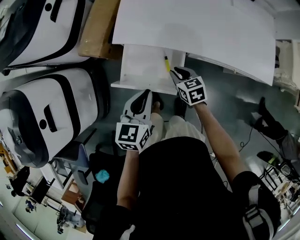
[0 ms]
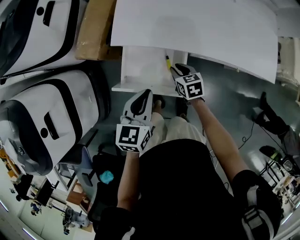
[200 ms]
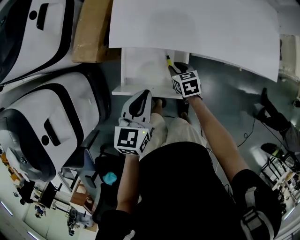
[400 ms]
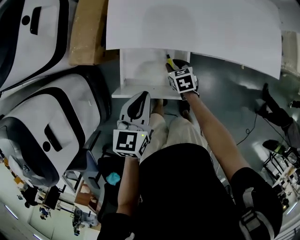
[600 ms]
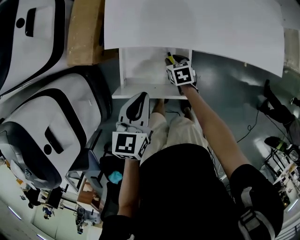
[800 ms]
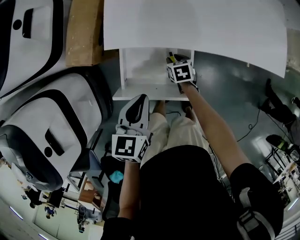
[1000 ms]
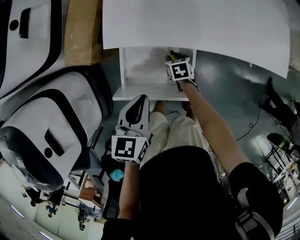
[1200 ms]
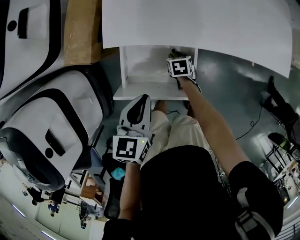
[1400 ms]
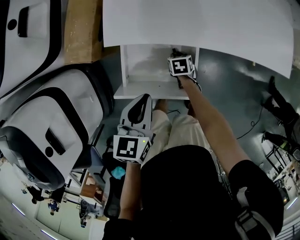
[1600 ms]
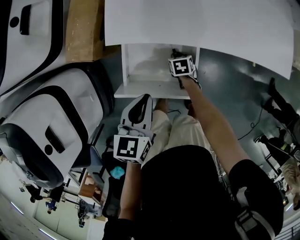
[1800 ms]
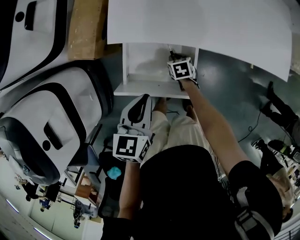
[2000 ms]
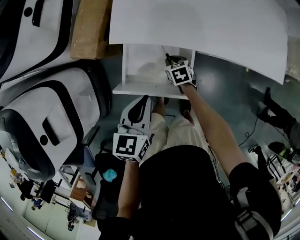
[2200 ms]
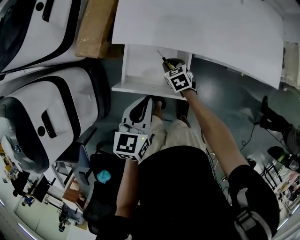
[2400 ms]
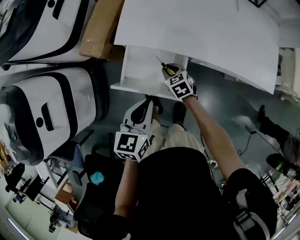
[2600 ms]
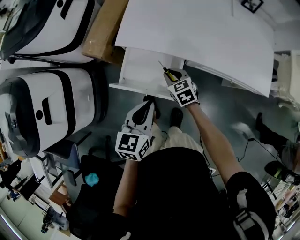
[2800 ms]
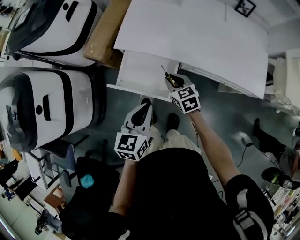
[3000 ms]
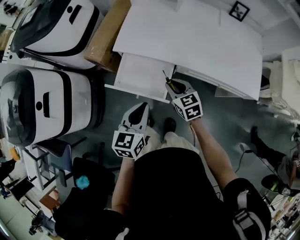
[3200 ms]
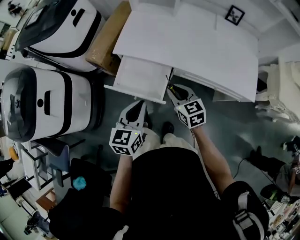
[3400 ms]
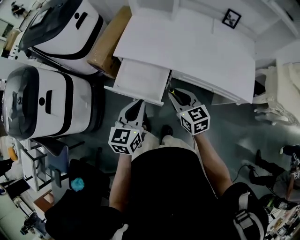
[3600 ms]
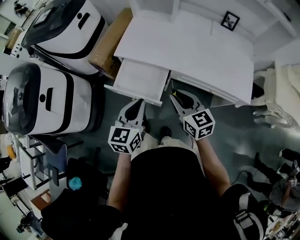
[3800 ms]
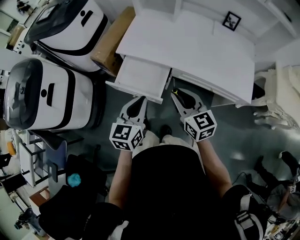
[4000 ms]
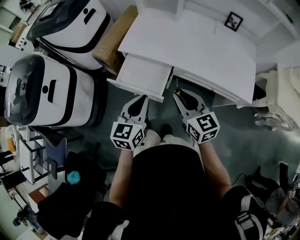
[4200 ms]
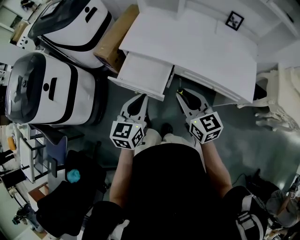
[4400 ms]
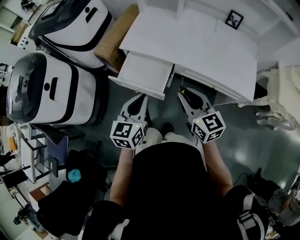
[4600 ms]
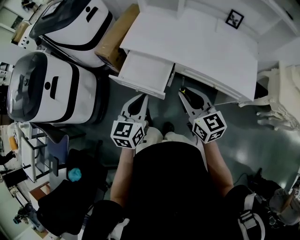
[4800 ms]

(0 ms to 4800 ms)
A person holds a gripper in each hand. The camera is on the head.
0 ms - 1600 ms: The right gripper heads downward, covering roughly 25 cm, and turns by approximately 30 degrees. Meanwhile the left gripper moves downward, forward and to the left, some 10 cm.
1600 ms - 3200 ms: The left gripper heads backward, upward and to the right, covering roughly 25 cm. Meanwhile the right gripper travels upward by some 35 cm, and tilts its fingers roughly 40 degrees upward.
3200 ms - 4800 ms: The right gripper goes roughly 25 cm upward and backward, and rotates some 20 degrees. The left gripper shifts about 10 cm backward and upward.

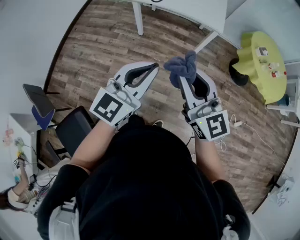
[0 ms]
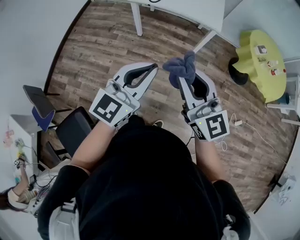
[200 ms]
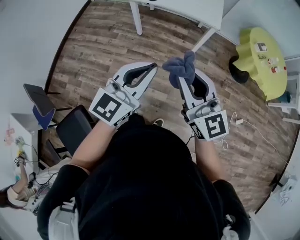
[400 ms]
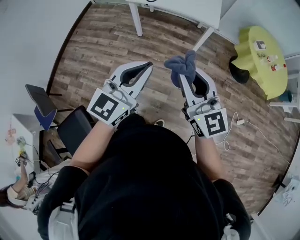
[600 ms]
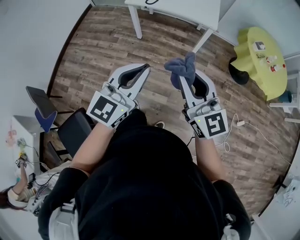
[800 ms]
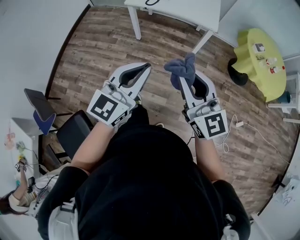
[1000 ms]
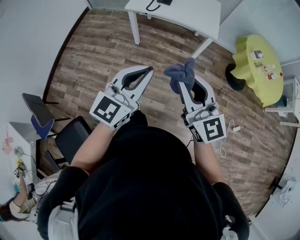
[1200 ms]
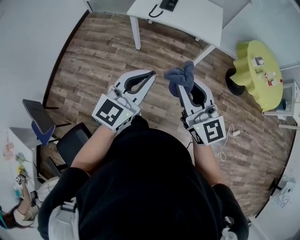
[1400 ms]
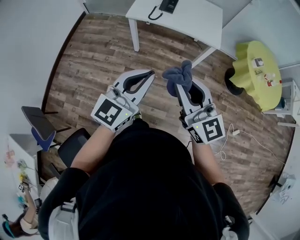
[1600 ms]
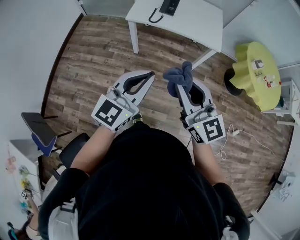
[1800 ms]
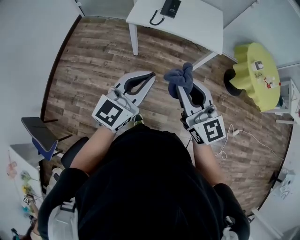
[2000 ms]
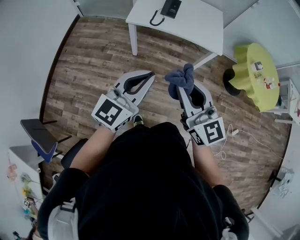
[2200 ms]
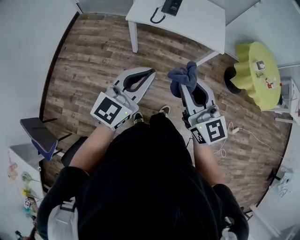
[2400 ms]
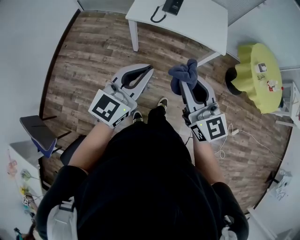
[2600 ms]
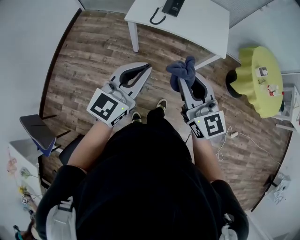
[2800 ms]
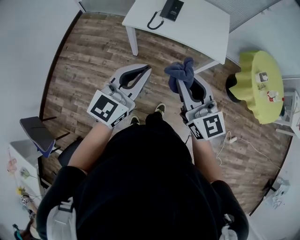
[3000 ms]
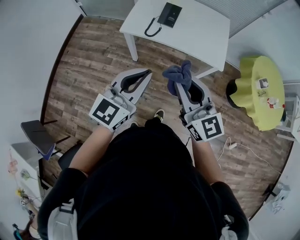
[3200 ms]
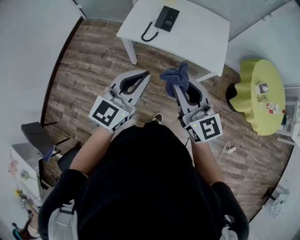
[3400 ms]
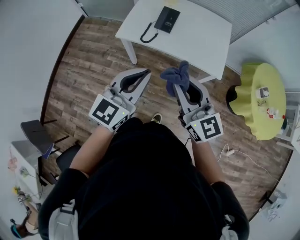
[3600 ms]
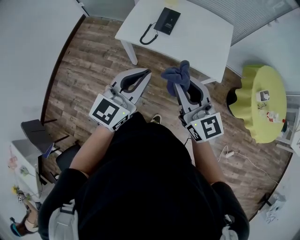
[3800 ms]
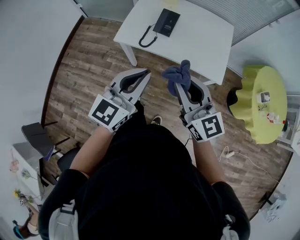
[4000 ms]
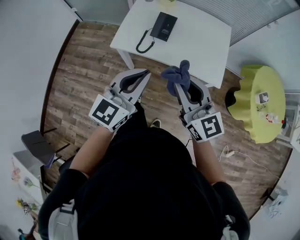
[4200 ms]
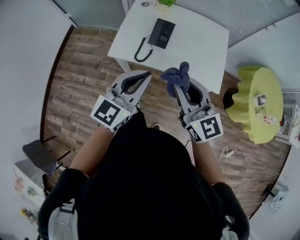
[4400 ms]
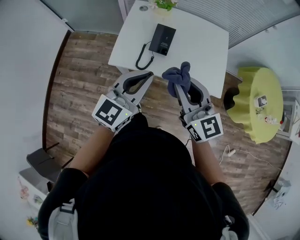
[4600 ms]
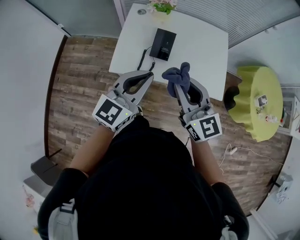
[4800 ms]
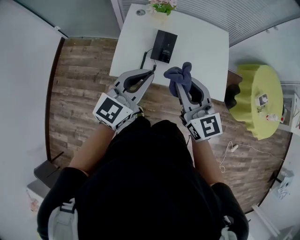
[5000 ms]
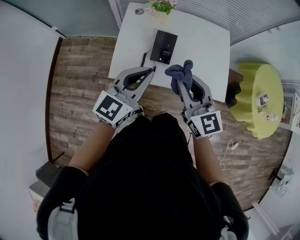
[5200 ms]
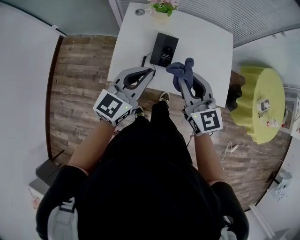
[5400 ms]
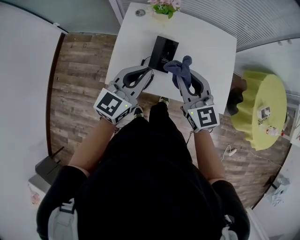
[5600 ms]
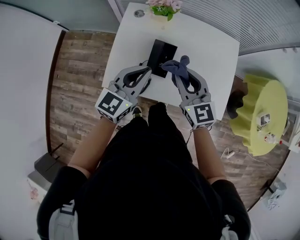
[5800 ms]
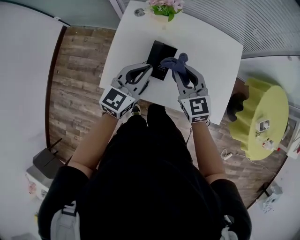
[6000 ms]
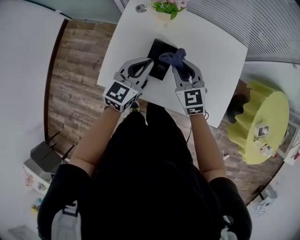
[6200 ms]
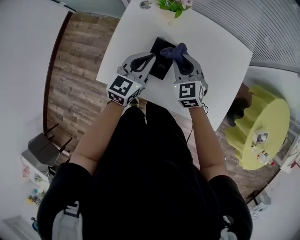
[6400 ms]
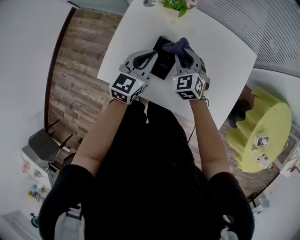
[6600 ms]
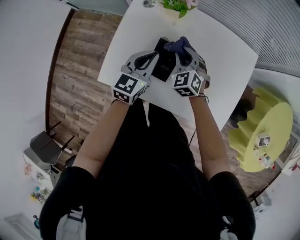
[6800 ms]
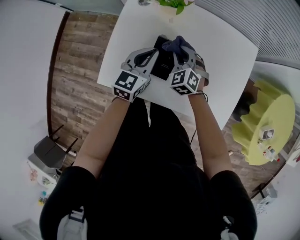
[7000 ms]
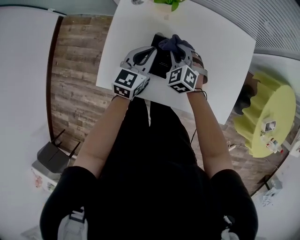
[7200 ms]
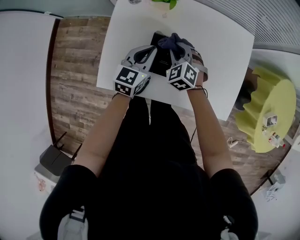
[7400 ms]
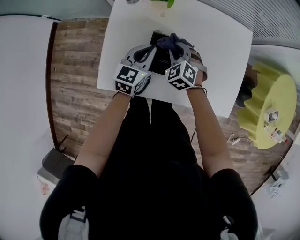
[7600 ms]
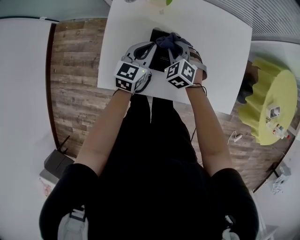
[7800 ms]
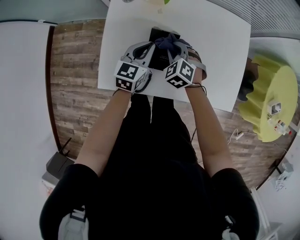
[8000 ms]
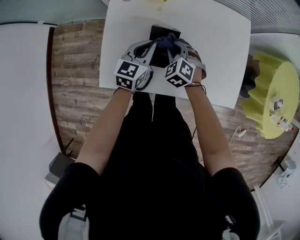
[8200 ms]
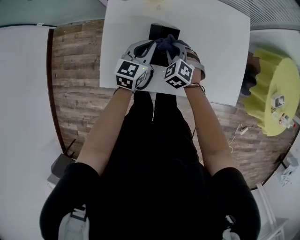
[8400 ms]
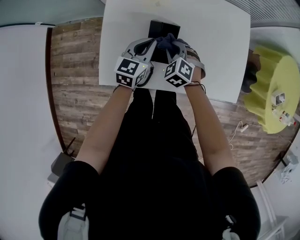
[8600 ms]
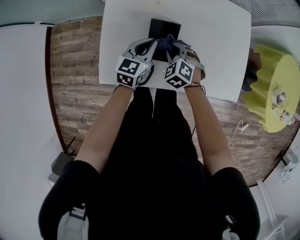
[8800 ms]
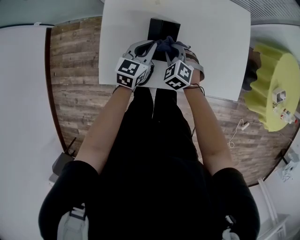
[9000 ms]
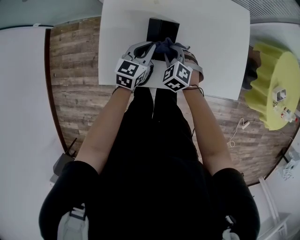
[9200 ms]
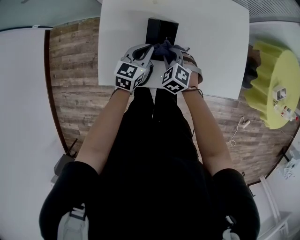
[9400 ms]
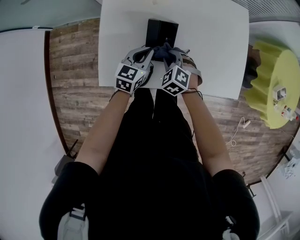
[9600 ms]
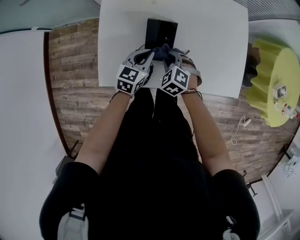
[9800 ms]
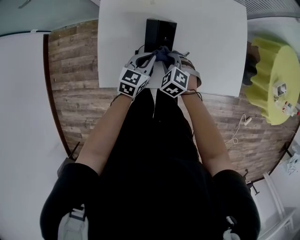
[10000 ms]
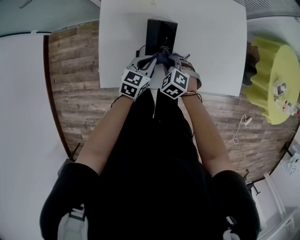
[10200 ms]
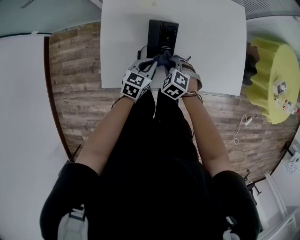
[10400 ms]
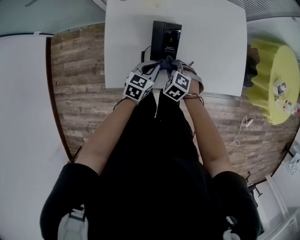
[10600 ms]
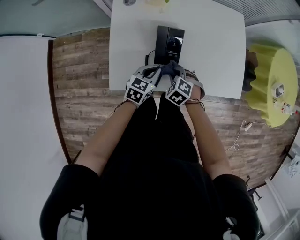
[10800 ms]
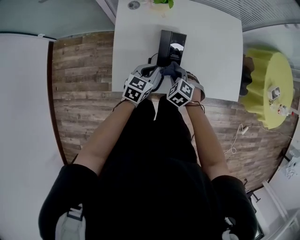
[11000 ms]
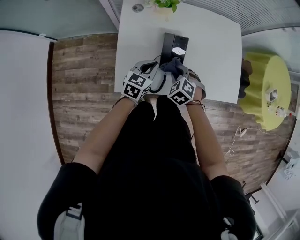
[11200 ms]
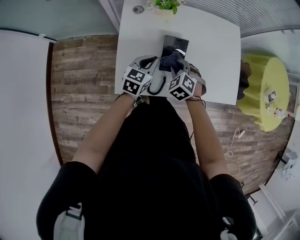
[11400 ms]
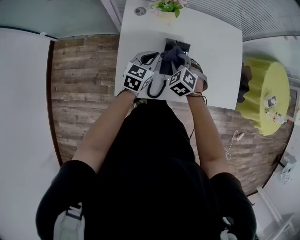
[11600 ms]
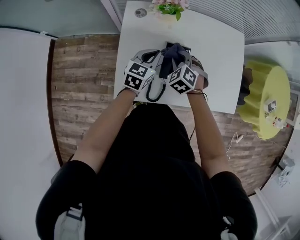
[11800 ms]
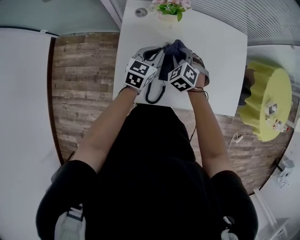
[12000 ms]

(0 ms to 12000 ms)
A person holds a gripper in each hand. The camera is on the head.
0 ms - 1600 ms: The left gripper moves forward and to the left, about 10 cm; the right gripper moves forward, roughly 10 cm.
1600 ms - 3000 ms: Both grippers move forward, approximately 20 cm.
3000 ms - 4400 ms: The grippers both shift forward by some 25 cm.
4400 ms - 6000 ms: The two grippers go some 35 cm forward and downward. The right gripper turns by some 20 degrees.
6000 ms - 7600 ms: Both grippers travel together downward and forward, about 15 cm. The right gripper swivels approximately 40 degrees.
7600 ms - 9000 ms: The right gripper shifts about 5 cm backward.
9000 ms - 10400 ms: The left gripper shifts about 10 cm backward and downward, while the right gripper heads backward, covering roughly 5 cm.
10400 ms - 12000 ms: The grippers both shift forward, upward and to the left by about 15 cm.

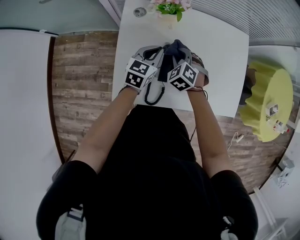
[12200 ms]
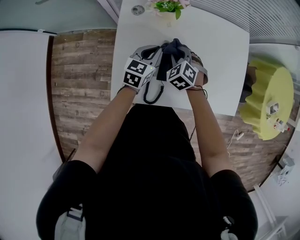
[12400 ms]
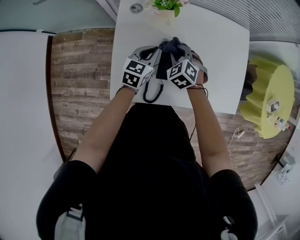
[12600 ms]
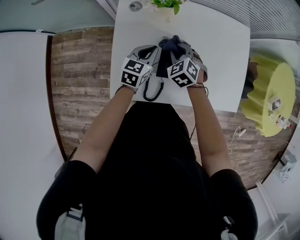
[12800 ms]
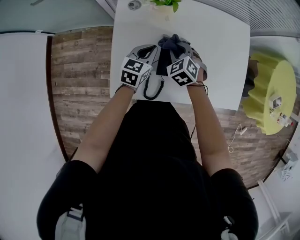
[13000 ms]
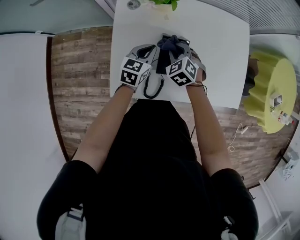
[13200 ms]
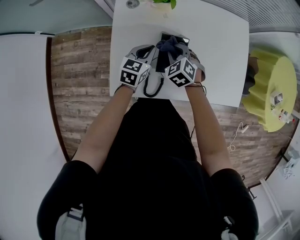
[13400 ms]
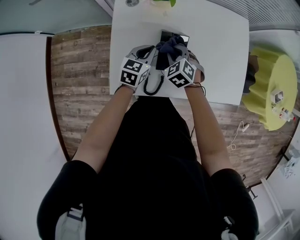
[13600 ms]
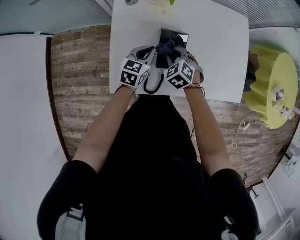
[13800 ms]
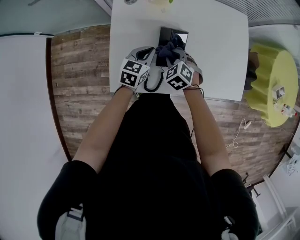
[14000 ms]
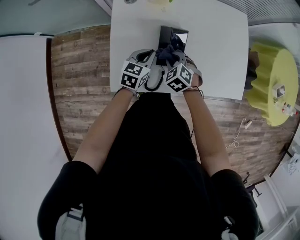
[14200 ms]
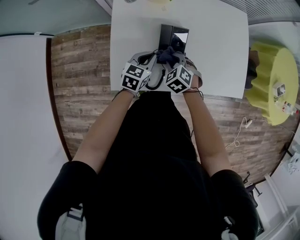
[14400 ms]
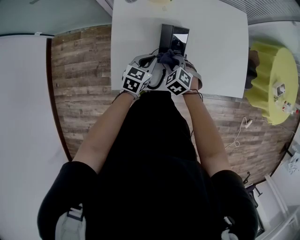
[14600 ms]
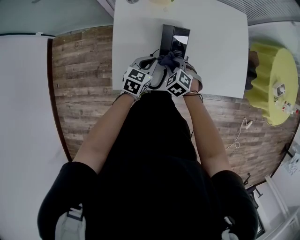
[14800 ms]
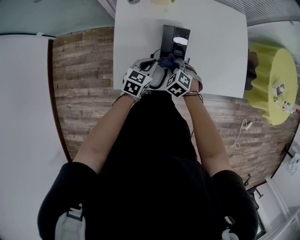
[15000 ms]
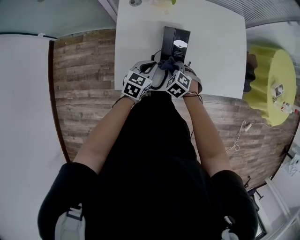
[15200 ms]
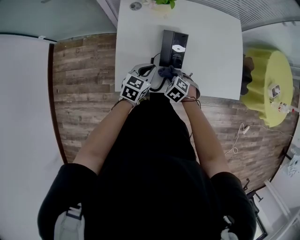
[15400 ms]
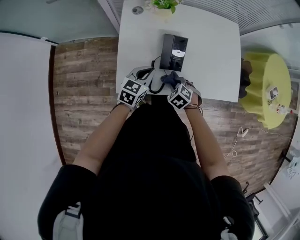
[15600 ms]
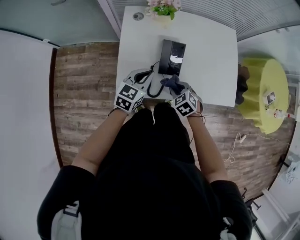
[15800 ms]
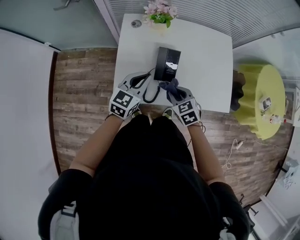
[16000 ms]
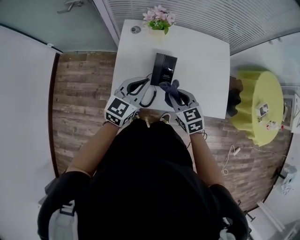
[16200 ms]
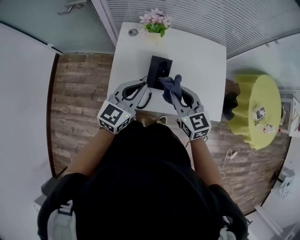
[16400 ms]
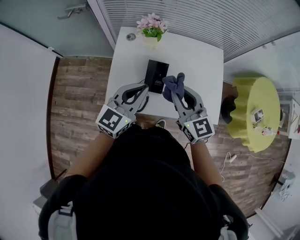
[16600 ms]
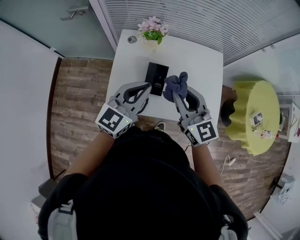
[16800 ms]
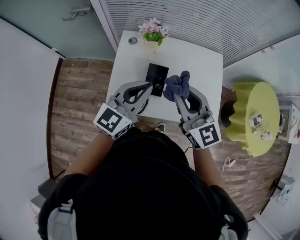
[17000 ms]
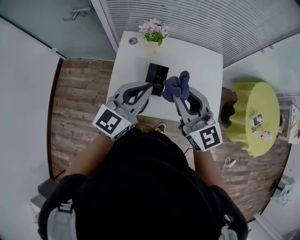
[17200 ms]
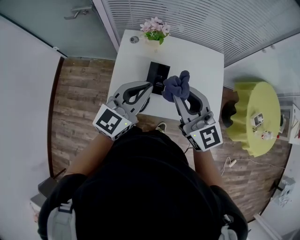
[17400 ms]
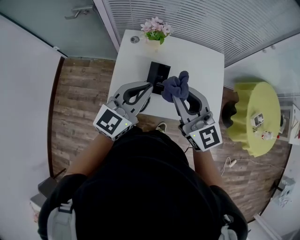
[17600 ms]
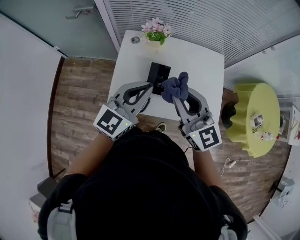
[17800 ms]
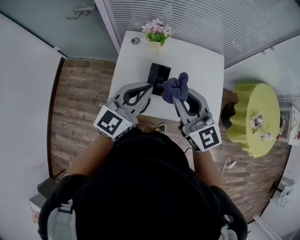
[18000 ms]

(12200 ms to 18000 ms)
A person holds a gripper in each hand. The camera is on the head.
12200 ms - 13600 ms: The left gripper moves roughly 5 cm. The right gripper shifts by approximately 5 cm.
13600 ms - 15000 ms: The two grippers go some 10 cm backward.
15000 ms - 16600 ms: The grippers both shift upward by approximately 30 cm. The left gripper swivels about 30 degrees. The right gripper tips its fingers upward by roughly 50 degrees.
16600 ms - 18000 ms: The grippers both shift upward by approximately 5 cm.

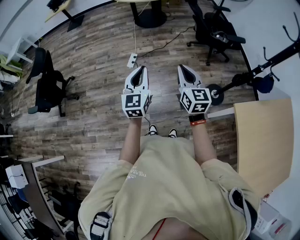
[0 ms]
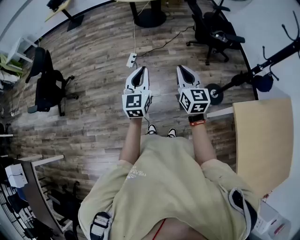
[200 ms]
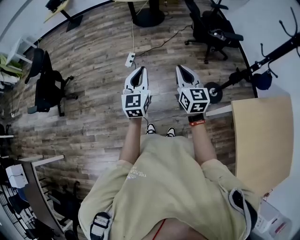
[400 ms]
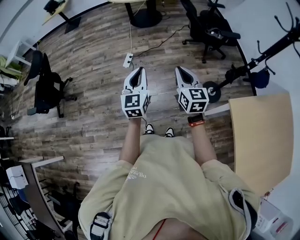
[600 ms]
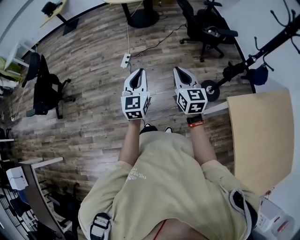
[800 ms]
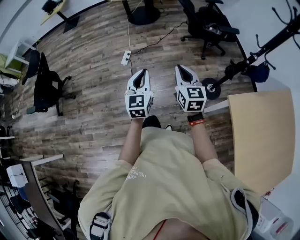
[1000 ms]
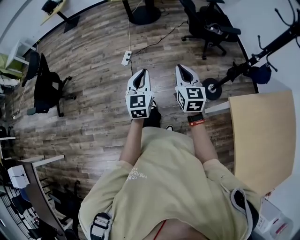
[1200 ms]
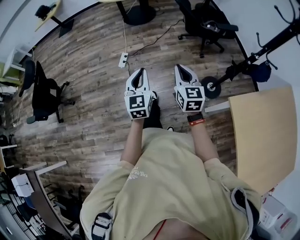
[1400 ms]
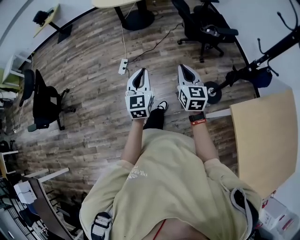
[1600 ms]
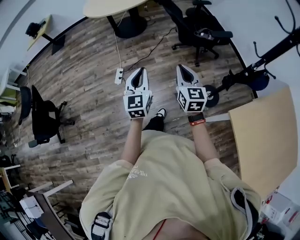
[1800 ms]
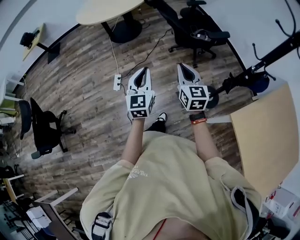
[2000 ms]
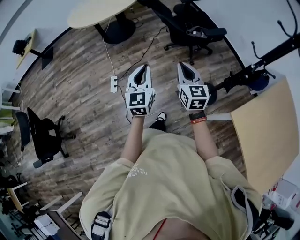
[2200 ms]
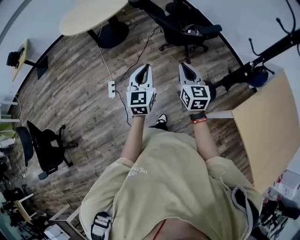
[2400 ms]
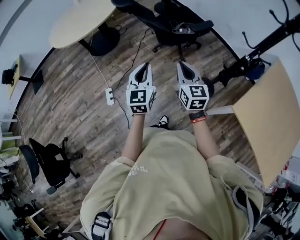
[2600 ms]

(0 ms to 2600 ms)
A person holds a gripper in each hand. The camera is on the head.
0 ms - 1200 ms: The grippers both shift to the right and downward by approximately 10 cm.
1200 ms - 2600 ms: The right gripper moves some 35 cm, and swivels some 20 degrees; the left gripper changes place by about 40 cm, and swivels roughly 30 degrees.
